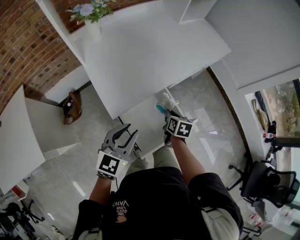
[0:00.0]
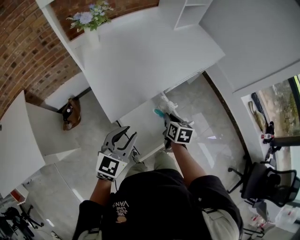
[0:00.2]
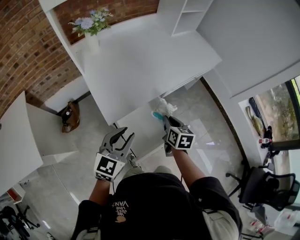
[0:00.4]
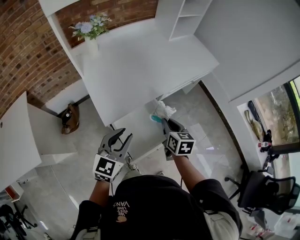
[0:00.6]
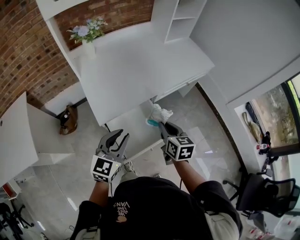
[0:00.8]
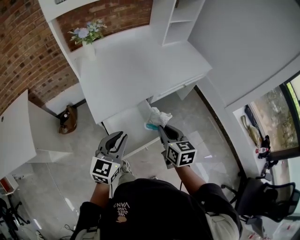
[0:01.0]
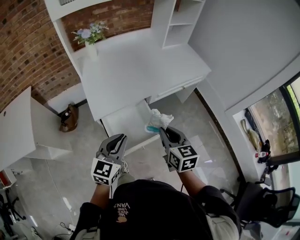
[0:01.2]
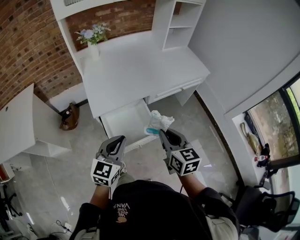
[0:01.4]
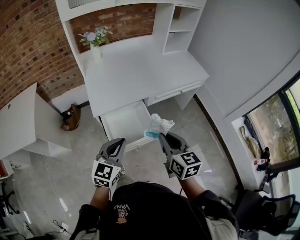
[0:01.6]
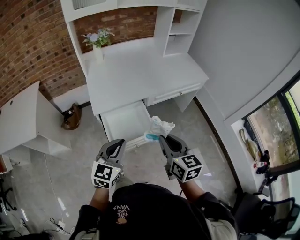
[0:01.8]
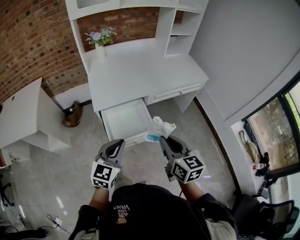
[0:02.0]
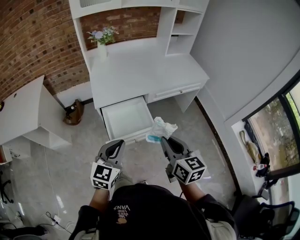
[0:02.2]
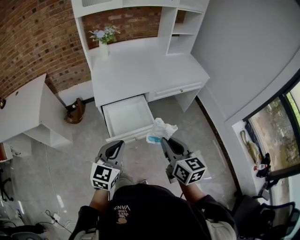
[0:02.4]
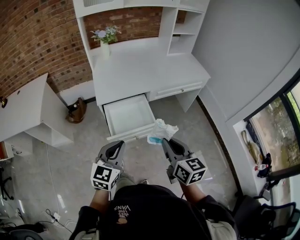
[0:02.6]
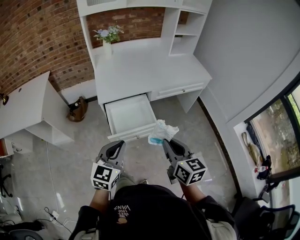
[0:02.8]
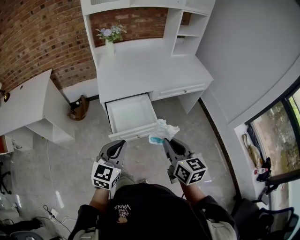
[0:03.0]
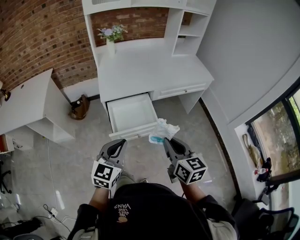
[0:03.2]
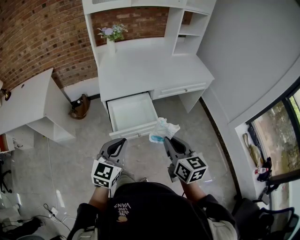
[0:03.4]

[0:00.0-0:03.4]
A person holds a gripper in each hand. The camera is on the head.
0:00.0 to 0:01.6: The right gripper travels upward, backward and to the right by some 35 cm, and turns by roughly 40 degrees; the left gripper is displaced to the right, backward and upward by some 20 cm, and closes up.
0:01.6 to 0:03.4: The grippers both shift backward by approximately 15 cm.

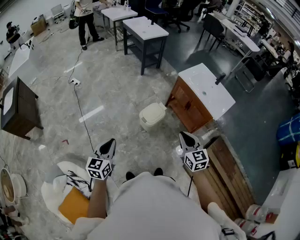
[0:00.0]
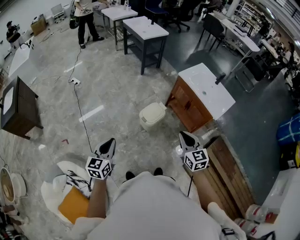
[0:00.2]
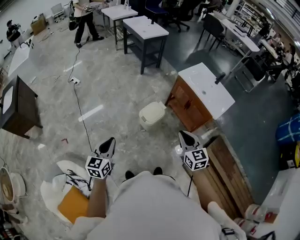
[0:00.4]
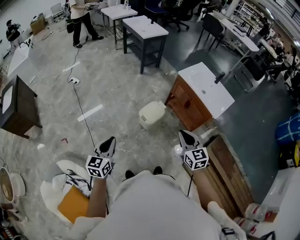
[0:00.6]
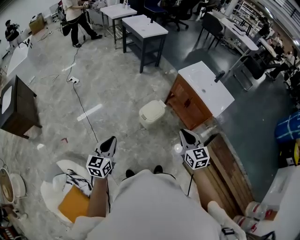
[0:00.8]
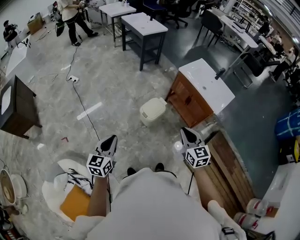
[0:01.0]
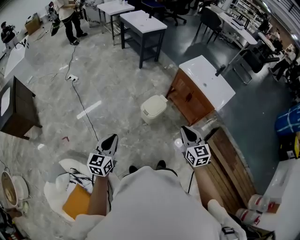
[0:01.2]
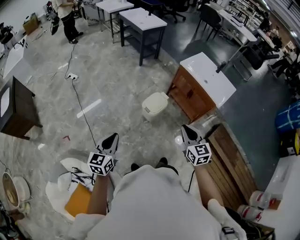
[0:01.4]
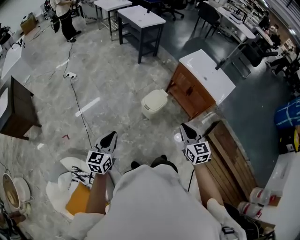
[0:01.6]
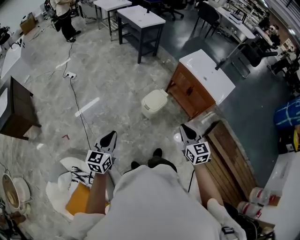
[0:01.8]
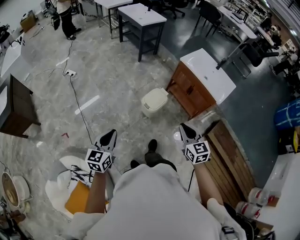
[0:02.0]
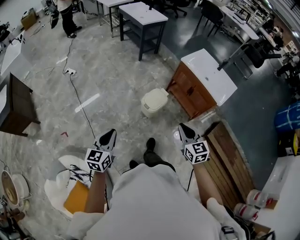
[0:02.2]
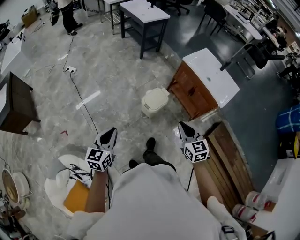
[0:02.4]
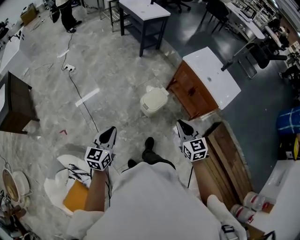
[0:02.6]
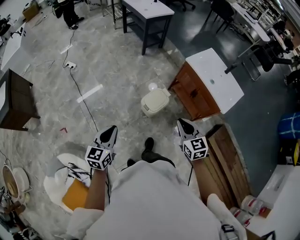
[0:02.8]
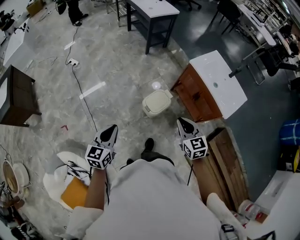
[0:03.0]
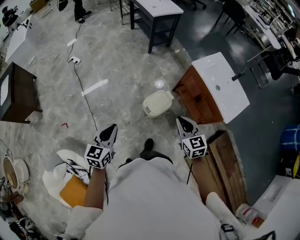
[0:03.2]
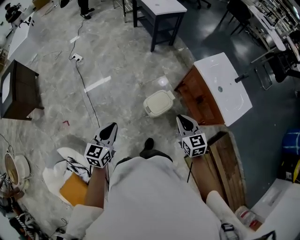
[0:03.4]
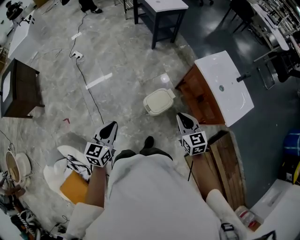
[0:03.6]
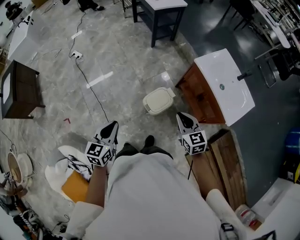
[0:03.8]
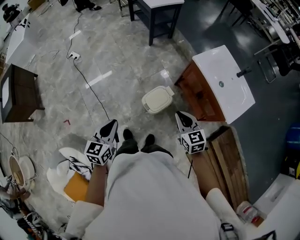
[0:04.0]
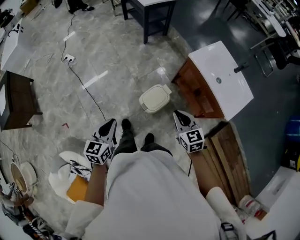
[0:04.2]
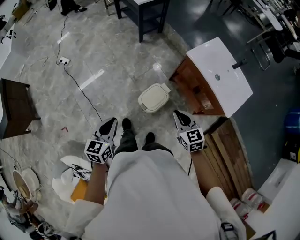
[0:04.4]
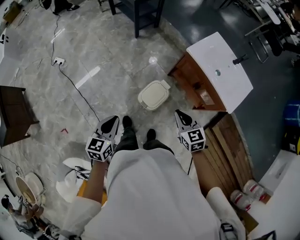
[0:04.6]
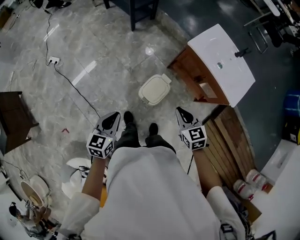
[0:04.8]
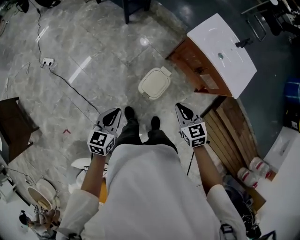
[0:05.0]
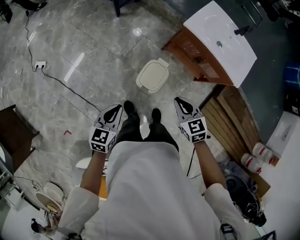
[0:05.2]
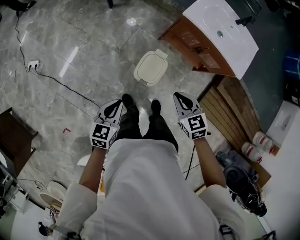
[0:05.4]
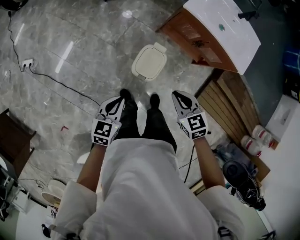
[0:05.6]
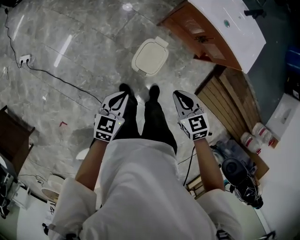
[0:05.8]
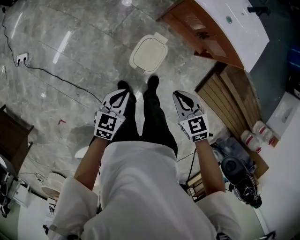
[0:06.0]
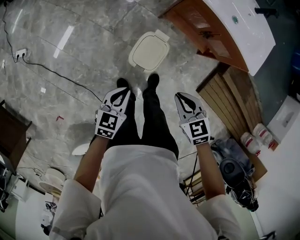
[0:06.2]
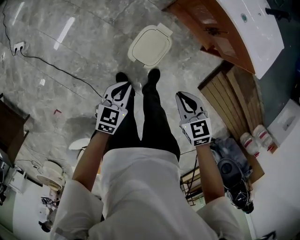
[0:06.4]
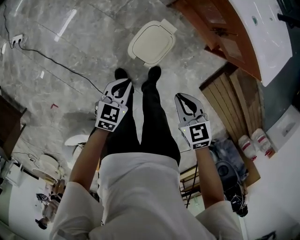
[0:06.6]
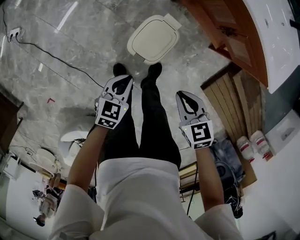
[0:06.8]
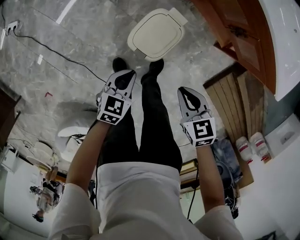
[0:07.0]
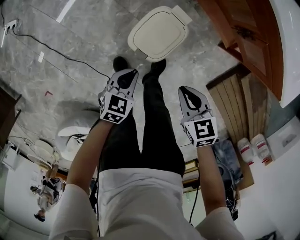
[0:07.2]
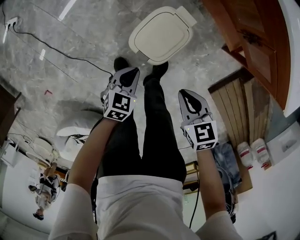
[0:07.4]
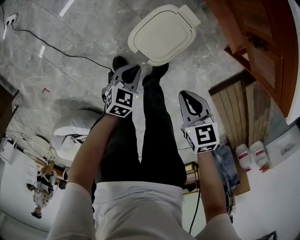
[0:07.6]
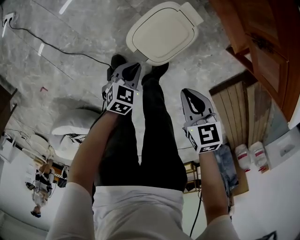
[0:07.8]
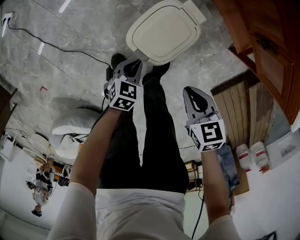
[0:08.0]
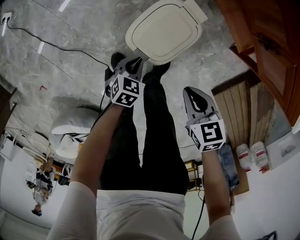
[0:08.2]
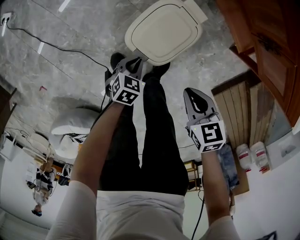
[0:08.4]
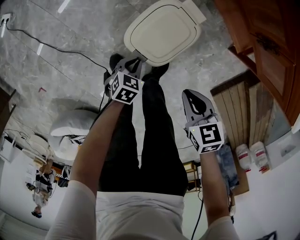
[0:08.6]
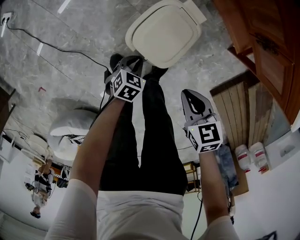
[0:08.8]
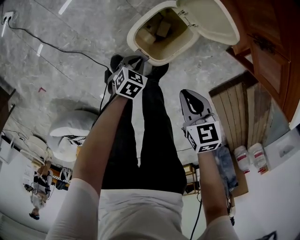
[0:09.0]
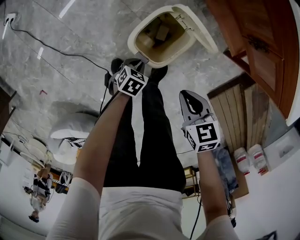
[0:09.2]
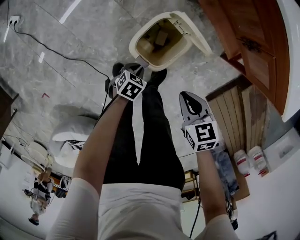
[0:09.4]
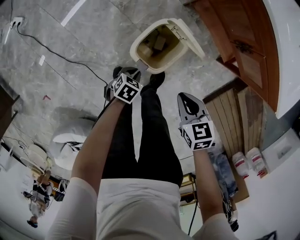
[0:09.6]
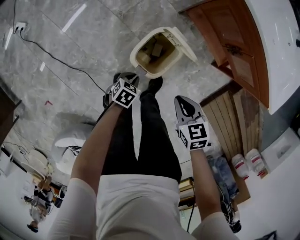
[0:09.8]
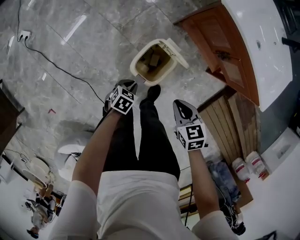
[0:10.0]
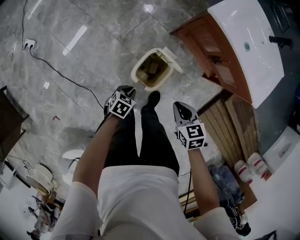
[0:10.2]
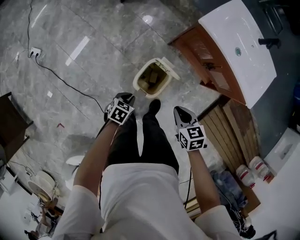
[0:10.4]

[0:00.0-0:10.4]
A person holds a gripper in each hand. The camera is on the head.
0:00.0 to 0:01.4: The right gripper shifts by approximately 5 cm.
0:01.4 to 0:03.0: The two grippers go about 15 cm forward.
0:03.0 to 0:04.4: The left gripper shifts some 10 cm forward. The right gripper moves forward and downward, approximately 10 cm.
0:04.4 to 0:06.0: The left gripper travels downward and forward by about 20 cm, and turns by about 40 degrees, while the right gripper moves downward and to the left, some 15 cm, and swivels some 20 degrees.
0:06.0 to 0:07.4: Both grippers move downward, roughly 25 cm.
0:07.4 to 0:09.0: The right gripper heads downward, covering approximately 5 cm. Meanwhile the left gripper is displaced downward by some 15 cm.
0:09.0 to 0:10.4: Both grippers move upward, roughly 20 cm.

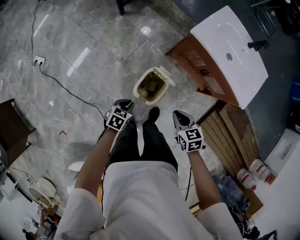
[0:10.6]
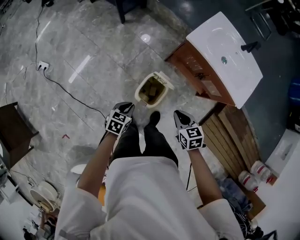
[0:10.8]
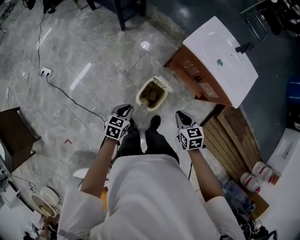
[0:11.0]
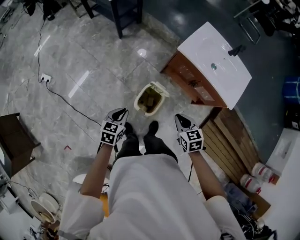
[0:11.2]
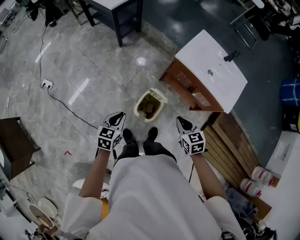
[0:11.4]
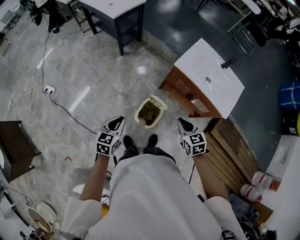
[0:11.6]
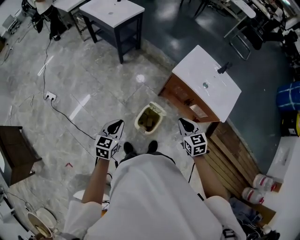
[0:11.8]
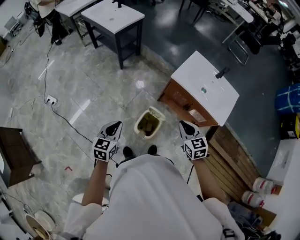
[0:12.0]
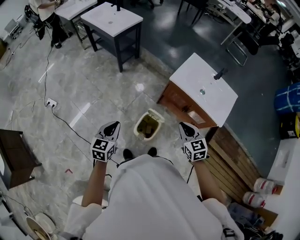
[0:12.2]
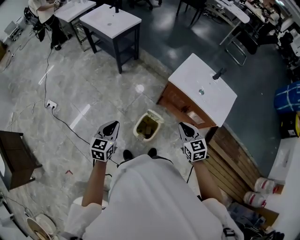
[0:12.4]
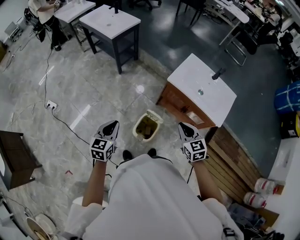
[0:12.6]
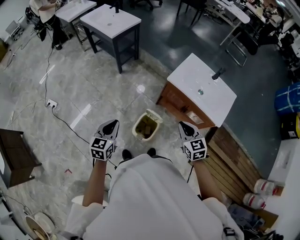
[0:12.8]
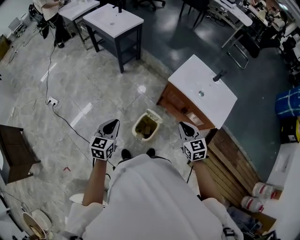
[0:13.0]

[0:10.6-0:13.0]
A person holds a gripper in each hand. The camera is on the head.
0:10.6 to 0:11.8: The right gripper is displaced upward by some 20 cm, while the left gripper shifts about 25 cm upward, and swivels approximately 30 degrees.
0:11.8 to 0:13.0: The left gripper moves some 5 cm; the right gripper ends up roughly 5 cm from where it was.

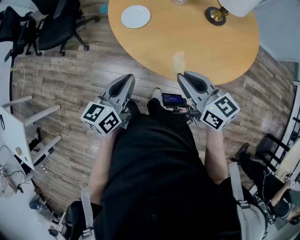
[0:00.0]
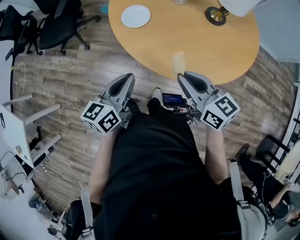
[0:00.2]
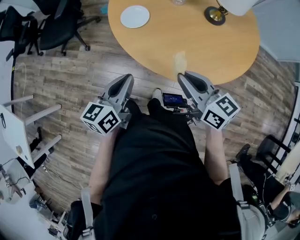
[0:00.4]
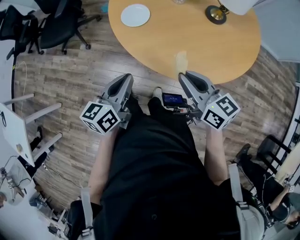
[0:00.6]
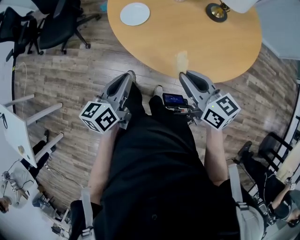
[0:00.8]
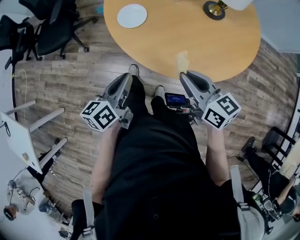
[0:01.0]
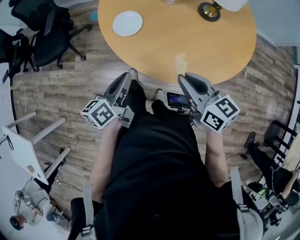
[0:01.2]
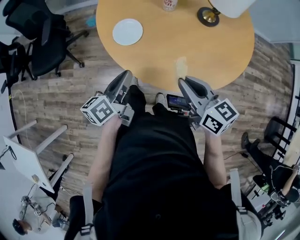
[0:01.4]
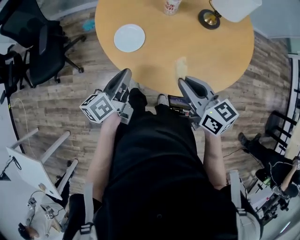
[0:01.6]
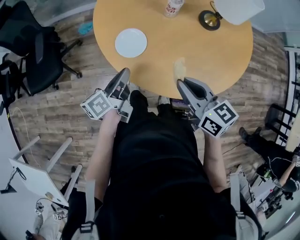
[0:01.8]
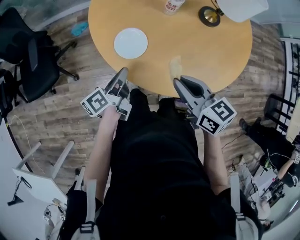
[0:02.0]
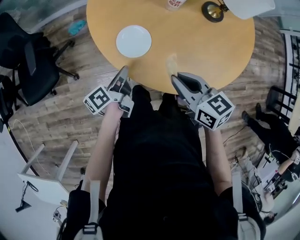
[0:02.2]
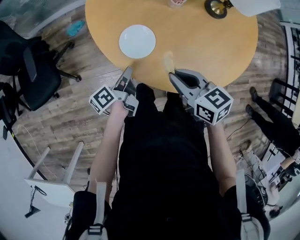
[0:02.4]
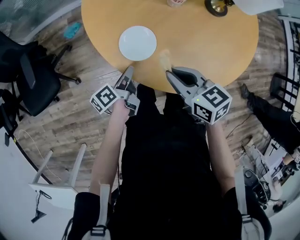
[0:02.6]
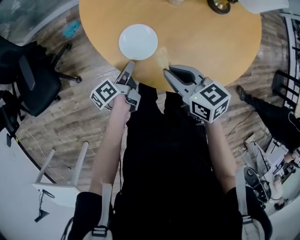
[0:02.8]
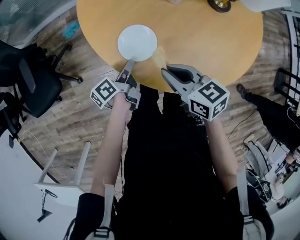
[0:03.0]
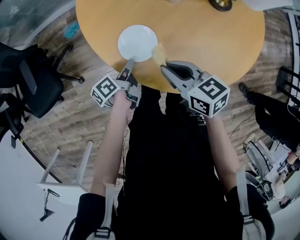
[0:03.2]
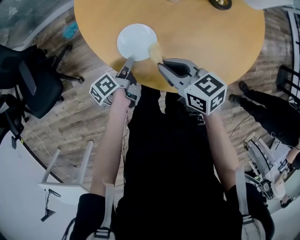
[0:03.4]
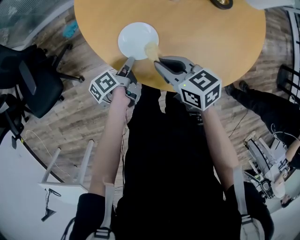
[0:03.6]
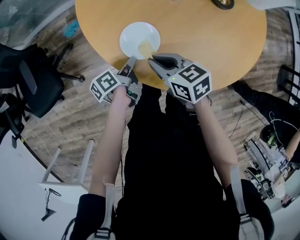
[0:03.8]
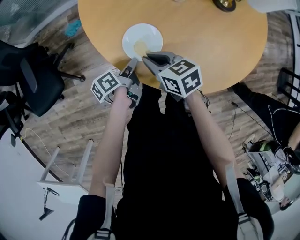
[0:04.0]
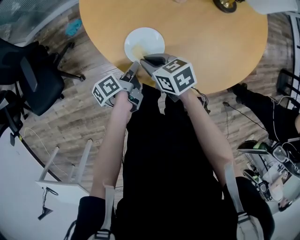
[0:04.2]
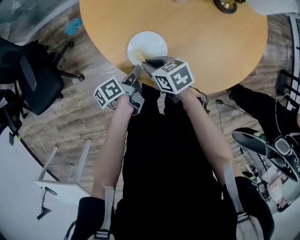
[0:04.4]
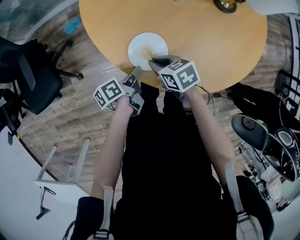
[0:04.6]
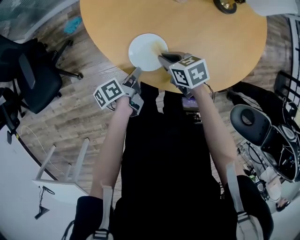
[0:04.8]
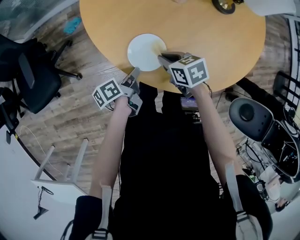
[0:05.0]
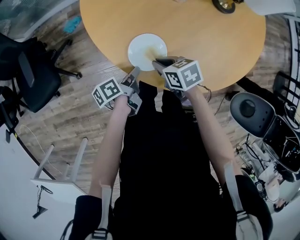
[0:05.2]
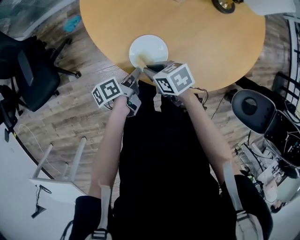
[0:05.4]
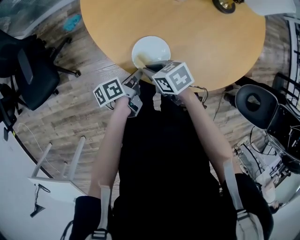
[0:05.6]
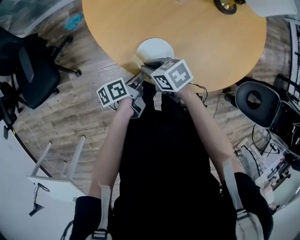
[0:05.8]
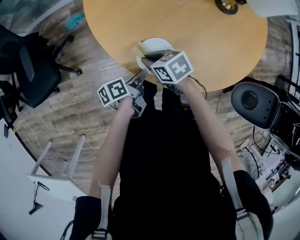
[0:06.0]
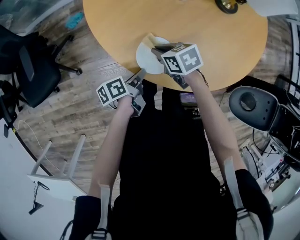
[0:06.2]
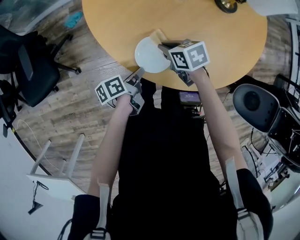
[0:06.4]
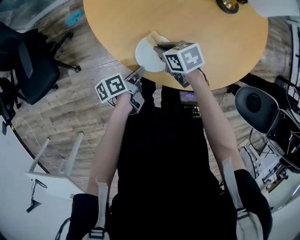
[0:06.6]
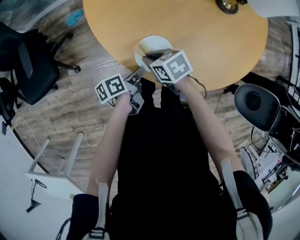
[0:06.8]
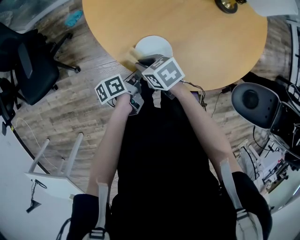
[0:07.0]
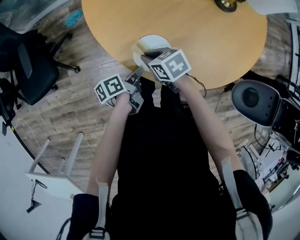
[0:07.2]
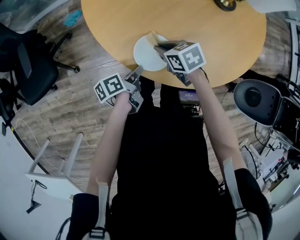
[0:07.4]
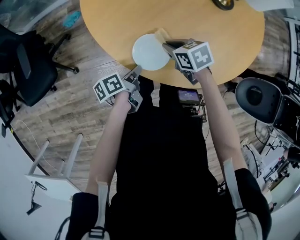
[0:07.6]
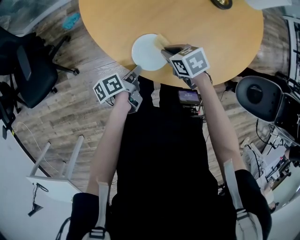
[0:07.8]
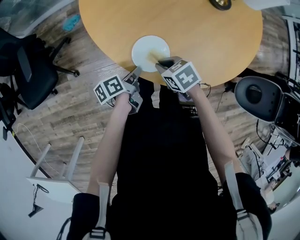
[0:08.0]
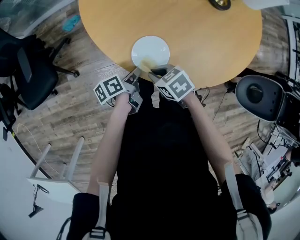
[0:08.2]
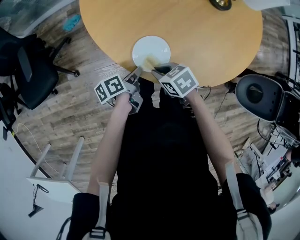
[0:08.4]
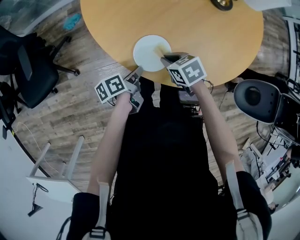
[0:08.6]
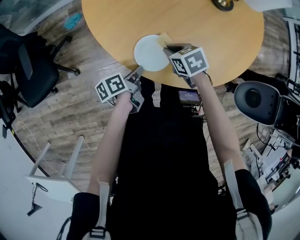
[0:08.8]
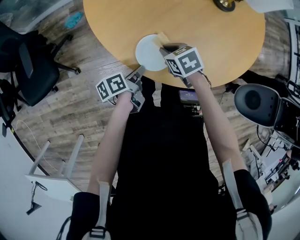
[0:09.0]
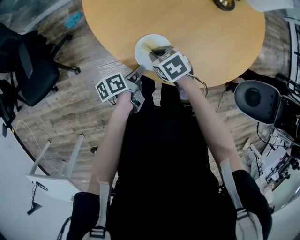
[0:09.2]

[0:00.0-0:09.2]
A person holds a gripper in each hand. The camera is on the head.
0:00.0 to 0:01.6: The right gripper ends up about 10 cm from where it was.
0:01.6 to 0:03.0: The right gripper shifts by roughly 20 cm.
0:03.0 to 0:04.6: The right gripper shifts roughly 10 cm downward.
